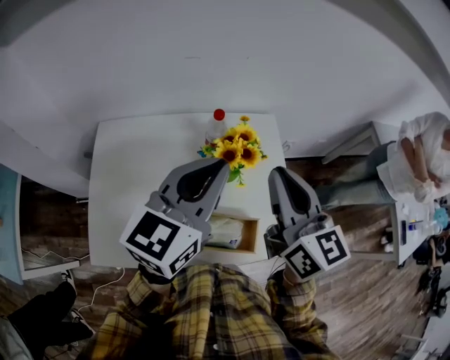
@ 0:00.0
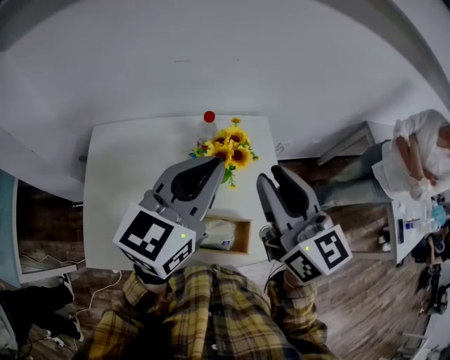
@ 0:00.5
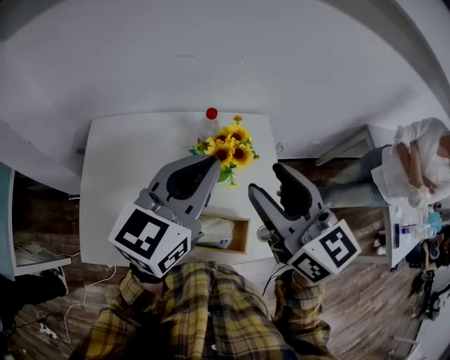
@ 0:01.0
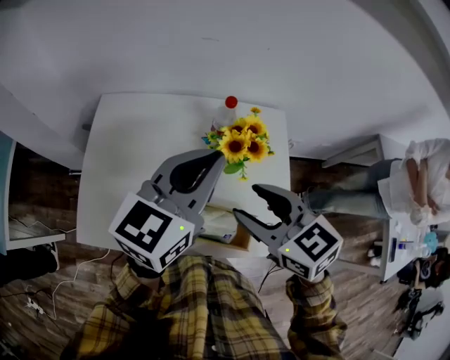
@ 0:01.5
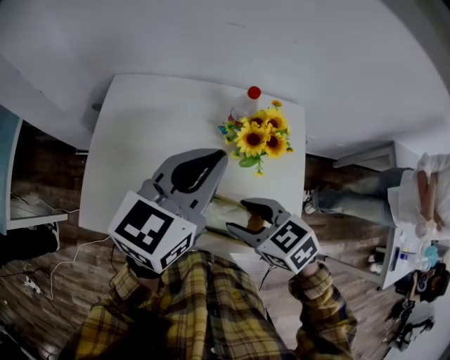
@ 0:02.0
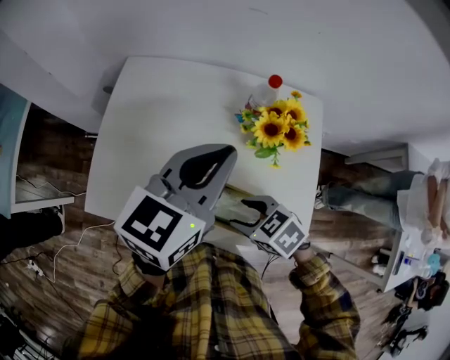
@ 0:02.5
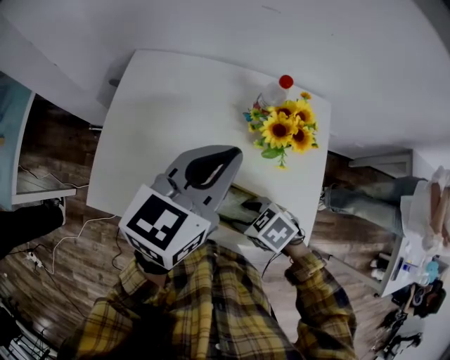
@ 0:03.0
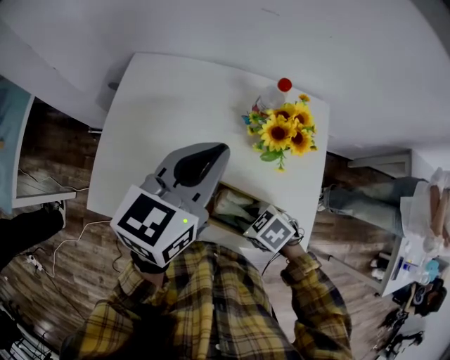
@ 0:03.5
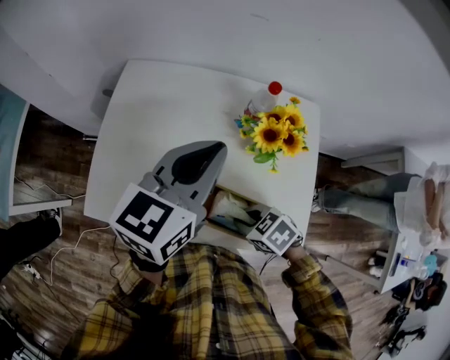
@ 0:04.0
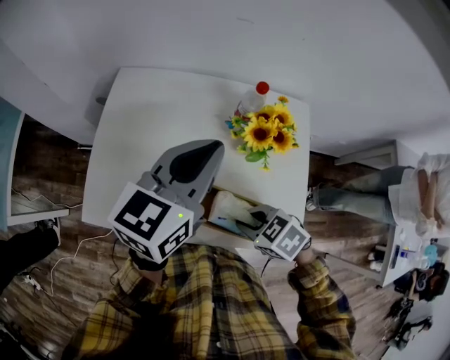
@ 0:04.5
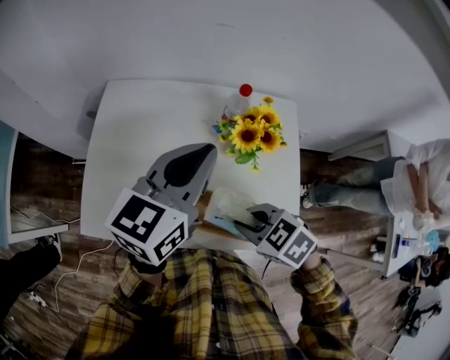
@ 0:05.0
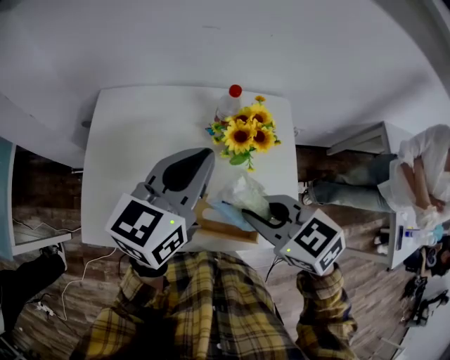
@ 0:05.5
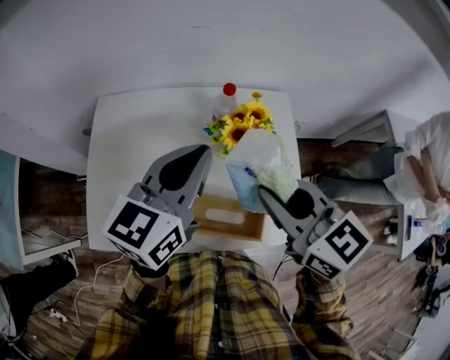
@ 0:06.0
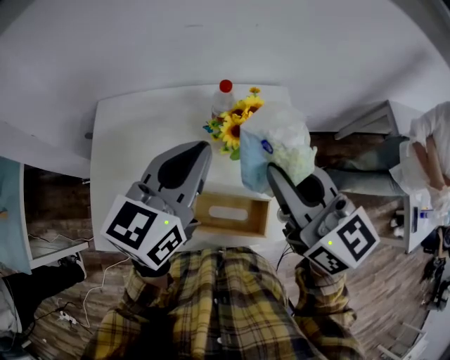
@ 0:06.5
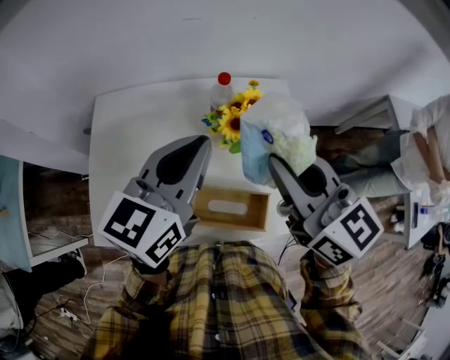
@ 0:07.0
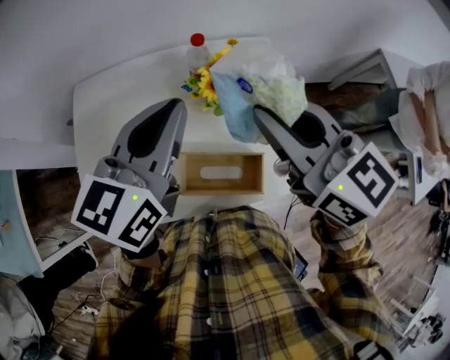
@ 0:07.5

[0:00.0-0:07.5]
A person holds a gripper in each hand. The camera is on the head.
0:00.0 to 0:02.0: The right gripper moves downward, roughly 20 cm, tips its fingers downward by some 40 degrees, and opens its fingers. The left gripper shifts approximately 5 cm downward.
0:02.0 to 0:04.0: The right gripper moves downward, about 10 cm, changes its angle by approximately 20 degrees, and closes.
0:04.0 to 0:05.5: The right gripper moves upward, some 20 cm, and rotates approximately 30 degrees.
0:05.5 to 0:07.5: The right gripper travels upward and forward by about 15 cm, and turns by some 40 degrees.

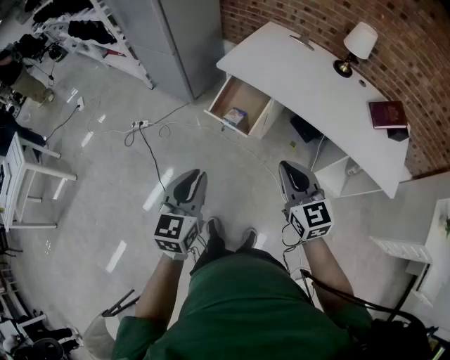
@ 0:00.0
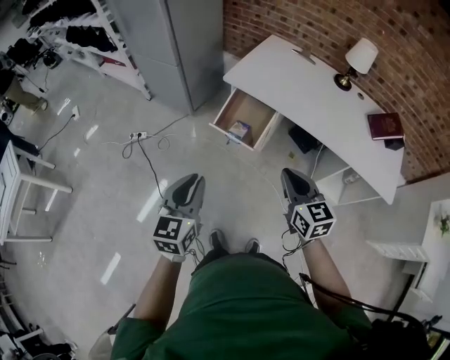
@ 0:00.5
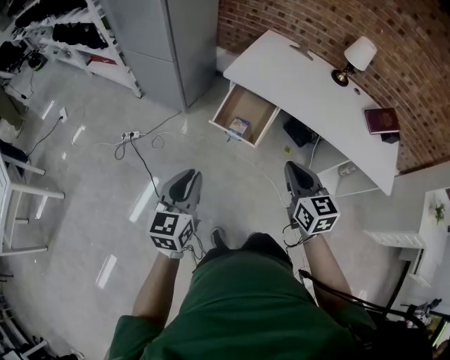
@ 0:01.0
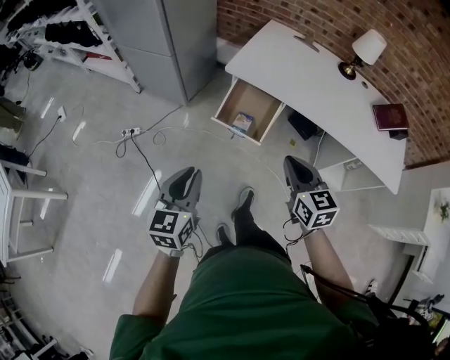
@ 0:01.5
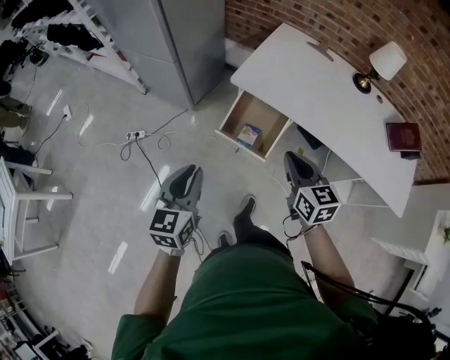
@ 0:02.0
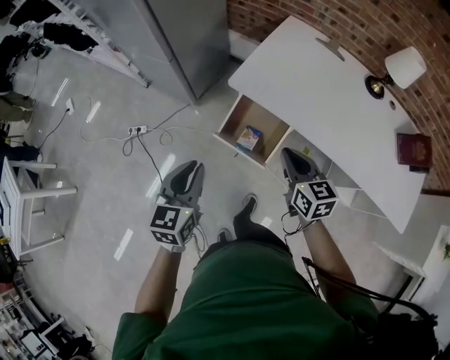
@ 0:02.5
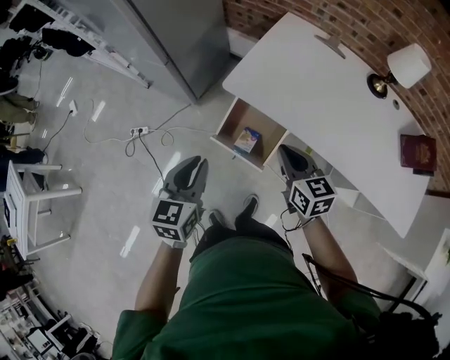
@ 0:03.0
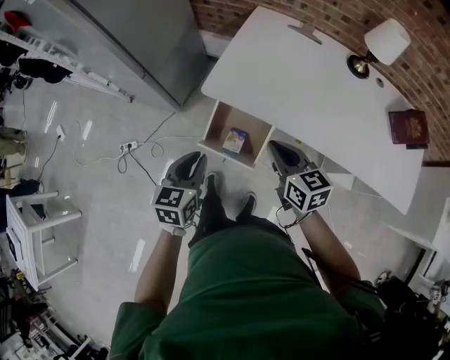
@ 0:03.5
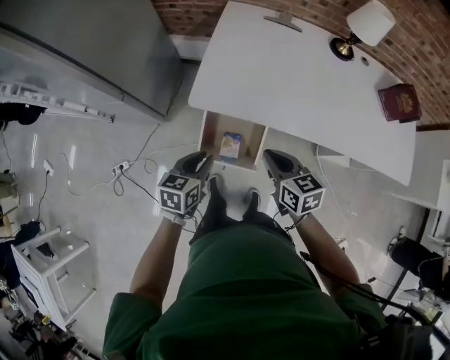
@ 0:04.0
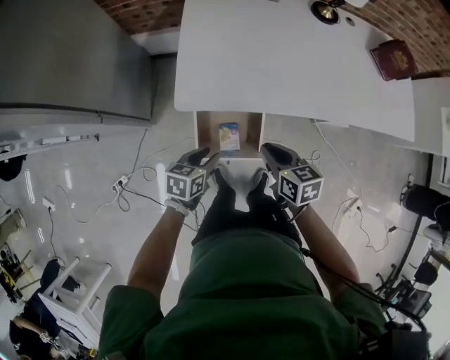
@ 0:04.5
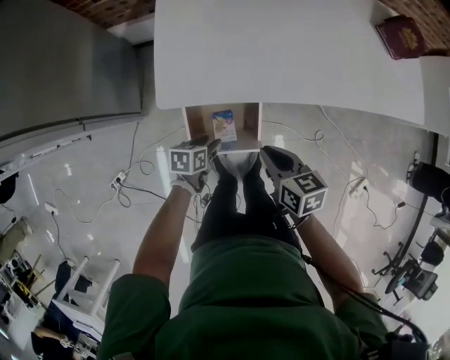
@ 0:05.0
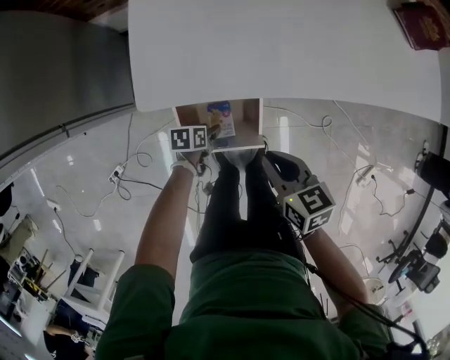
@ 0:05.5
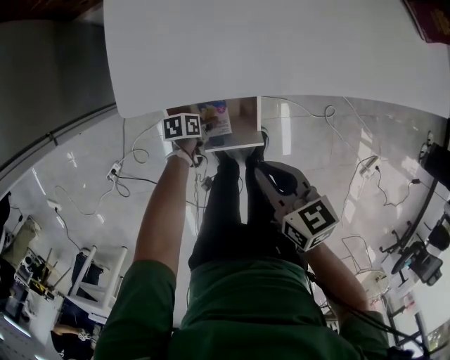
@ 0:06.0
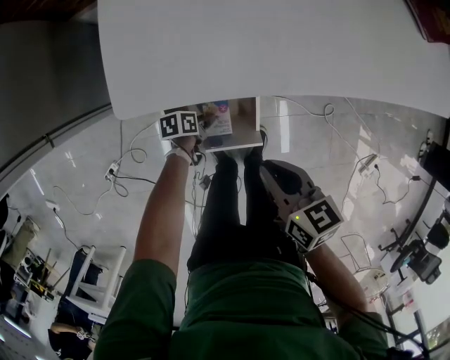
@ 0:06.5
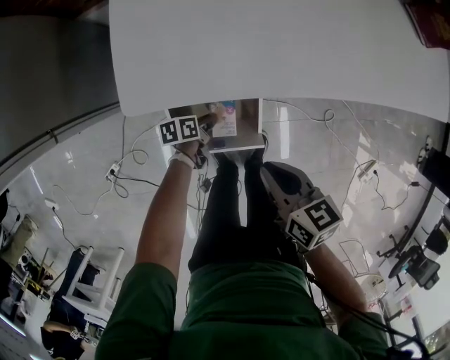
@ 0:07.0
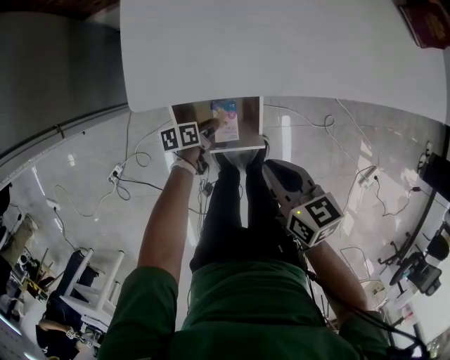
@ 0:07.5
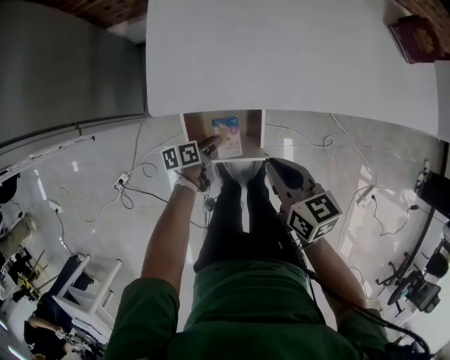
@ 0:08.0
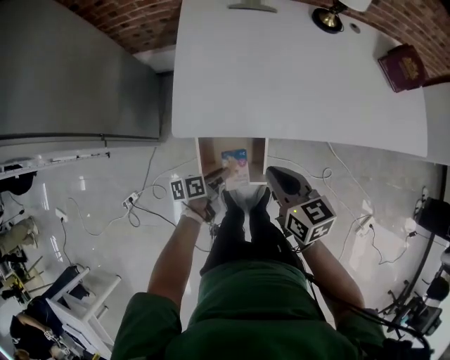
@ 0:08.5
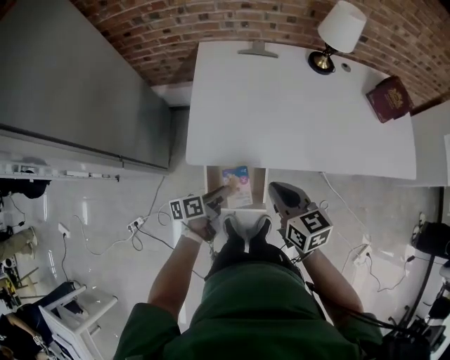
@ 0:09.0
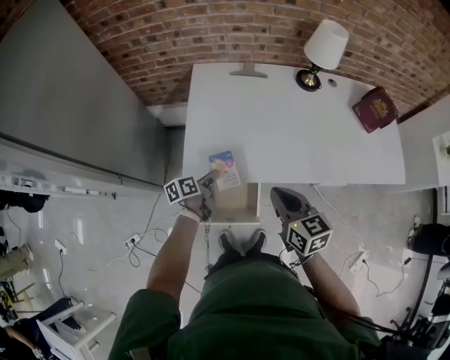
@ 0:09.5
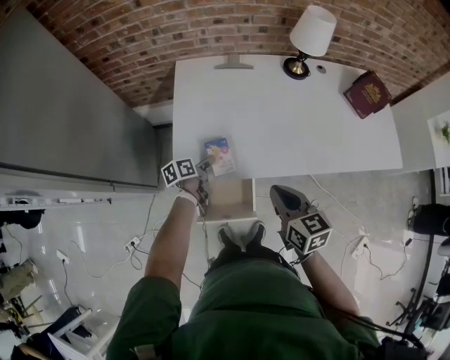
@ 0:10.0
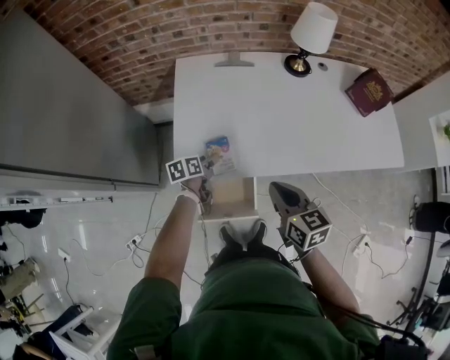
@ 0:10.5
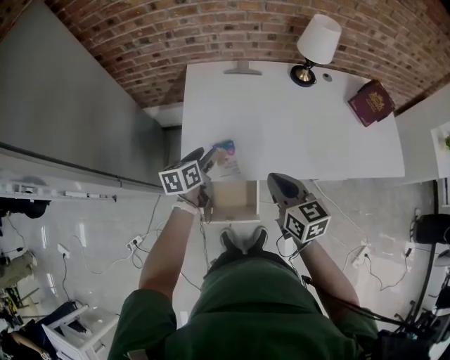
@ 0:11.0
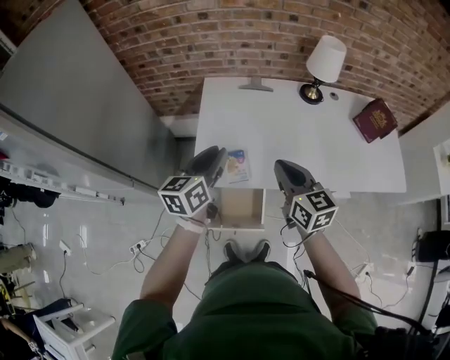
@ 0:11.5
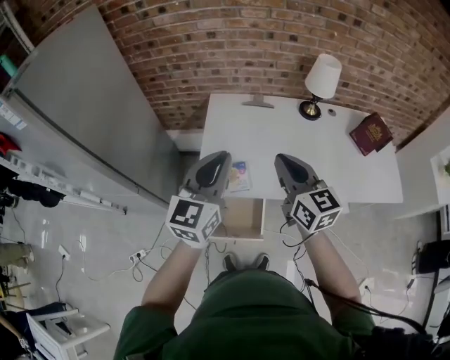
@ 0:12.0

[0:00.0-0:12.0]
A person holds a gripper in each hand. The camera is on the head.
0:00.0 to 0:02.0: The two grippers go some 25 cm forward and to the left.
0:02.0 to 0:04.0: The right gripper shifts about 15 cm forward and downward; the left gripper moves forward, downward and to the right, approximately 30 cm, and rotates approximately 40 degrees.
0:04.0 to 0:06.0: The right gripper goes some 15 cm downward, and changes its angle by about 20 degrees; the left gripper heads downward, covering approximately 40 cm, swivels some 50 degrees, and opens up.
0:06.0 to 0:08.0: The left gripper goes approximately 10 cm upward, turns by approximately 20 degrees, and closes up. The right gripper changes place by some 5 cm.
0:08.0 to 0:10.0: The left gripper moves forward and upward, roughly 25 cm, while the right gripper goes approximately 15 cm upward and forward.
0:10.0 to 0:12.0: The right gripper is displaced upward by about 20 cm, and changes its angle by approximately 30 degrees. Meanwhile the left gripper travels upward by roughly 40 cm, twists approximately 60 degrees clockwise, seen from behind, and opens, then closes again.

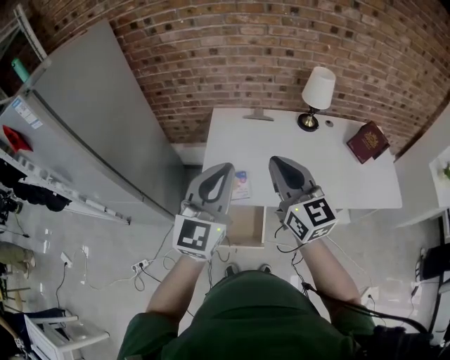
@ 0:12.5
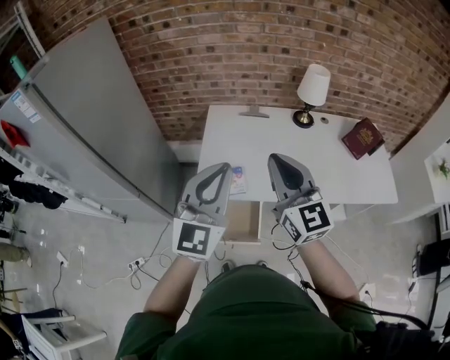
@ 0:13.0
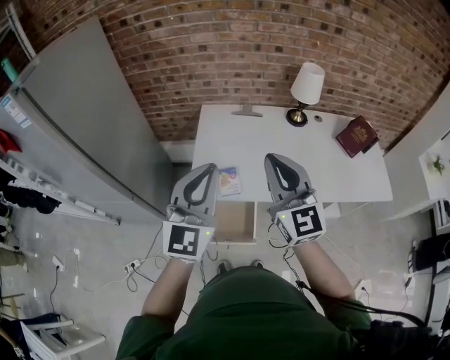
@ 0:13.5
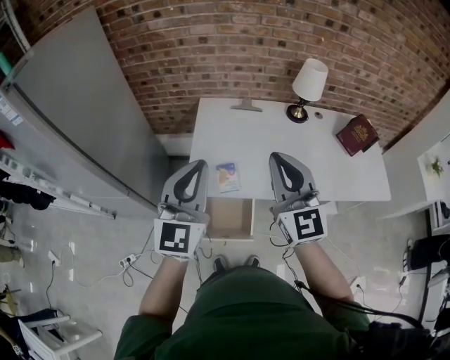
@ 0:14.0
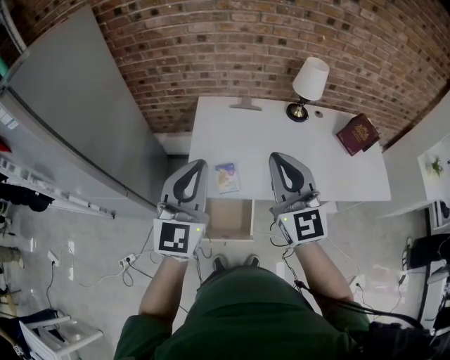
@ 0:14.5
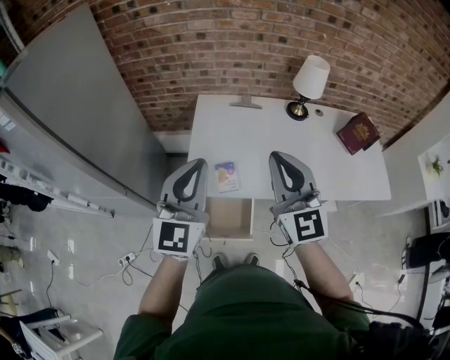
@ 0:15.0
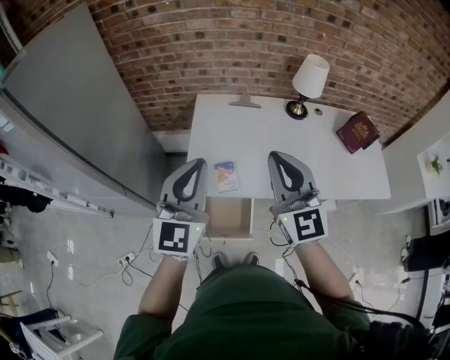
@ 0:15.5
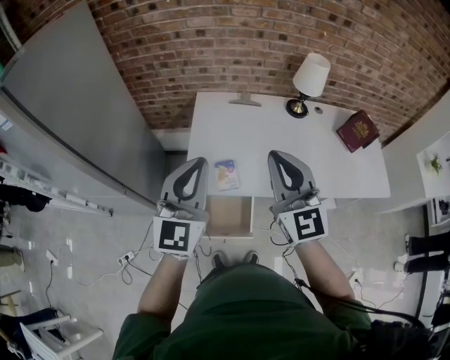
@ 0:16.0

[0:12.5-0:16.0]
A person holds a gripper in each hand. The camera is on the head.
0:12.5 to 0:14.5: The left gripper changes place by roughly 5 cm.
0:14.5 to 0:16.0: Both grippers stay put.

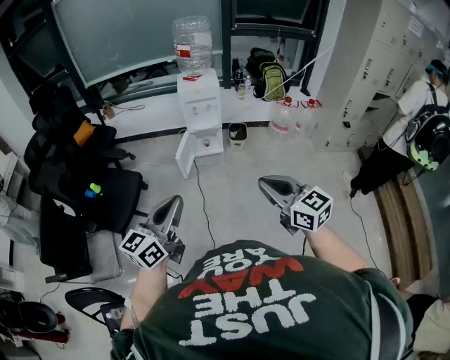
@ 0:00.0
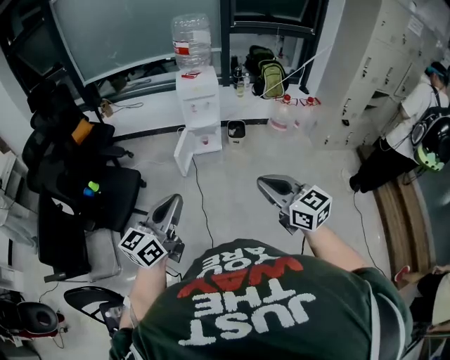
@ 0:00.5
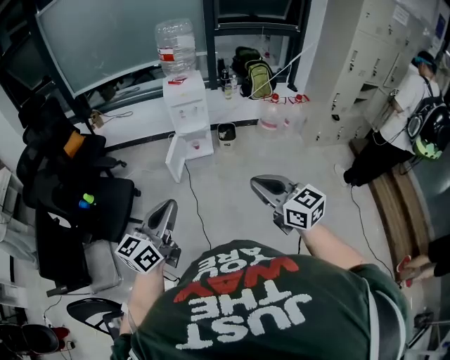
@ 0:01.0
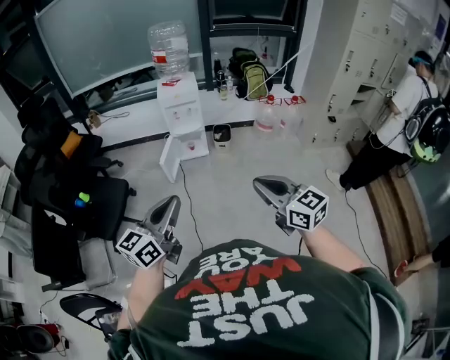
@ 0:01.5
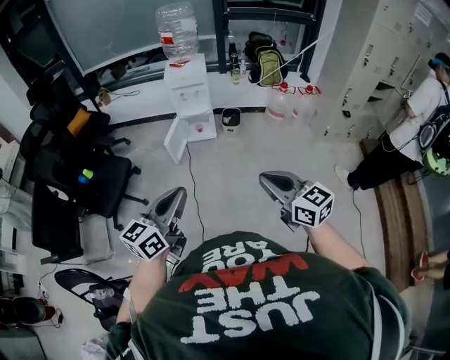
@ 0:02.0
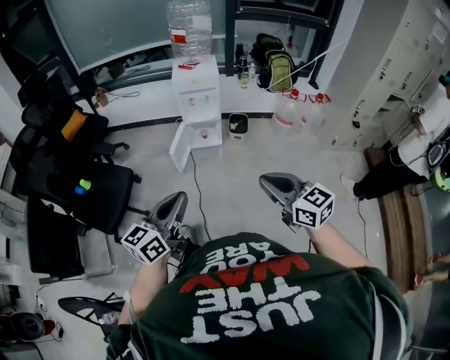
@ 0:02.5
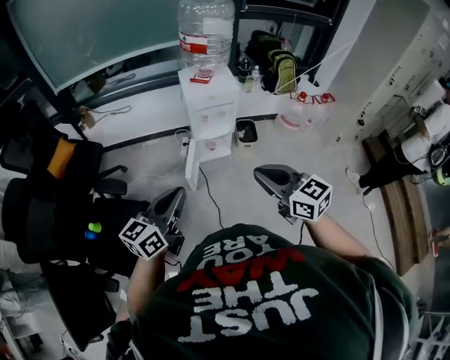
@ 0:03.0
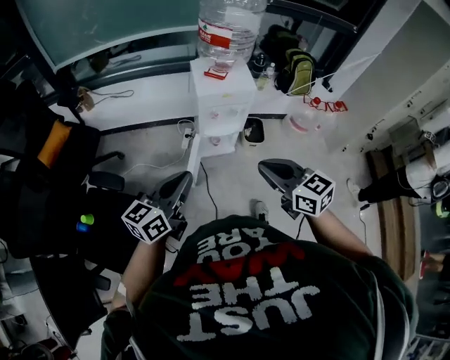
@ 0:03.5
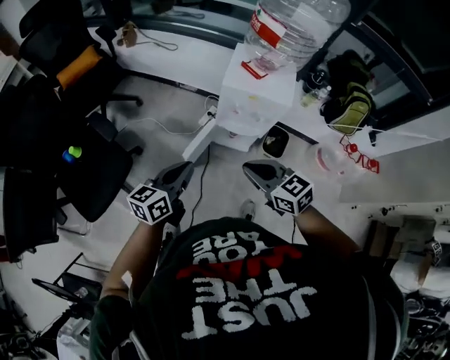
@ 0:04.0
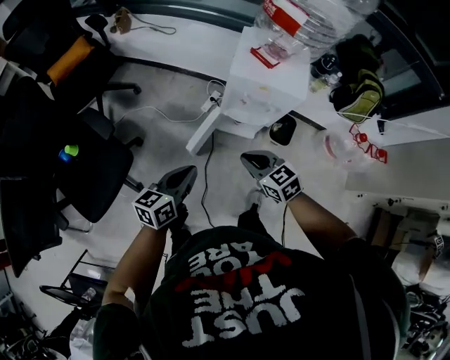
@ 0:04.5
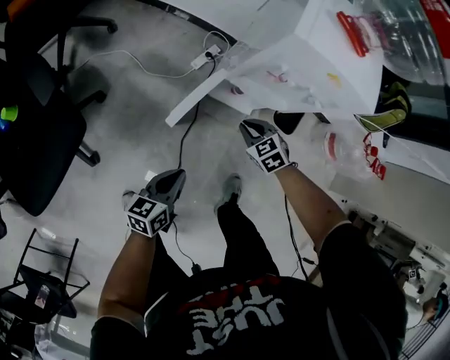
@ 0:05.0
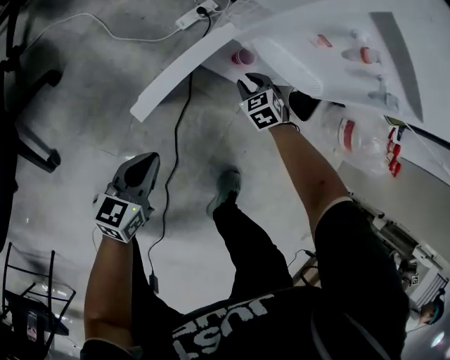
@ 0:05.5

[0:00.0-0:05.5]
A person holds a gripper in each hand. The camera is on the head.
0:00.0 to 0:02.0: The grippers both shift to the right by about 15 cm.
0:02.0 to 0:03.5: The two grippers travel together, forward and to the left, some 60 cm.
0:03.5 to 0:05.5: Both grippers travel together downward, roughly 70 cm. The right gripper angles its fingers downward, by about 40 degrees; the left gripper changes its angle by approximately 40 degrees.
